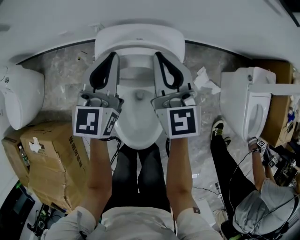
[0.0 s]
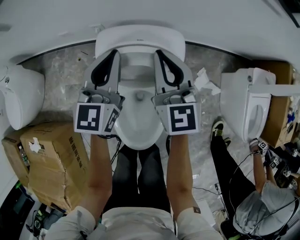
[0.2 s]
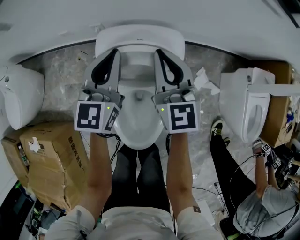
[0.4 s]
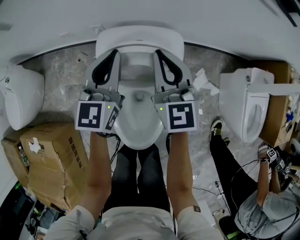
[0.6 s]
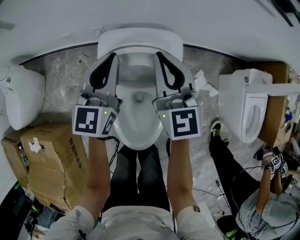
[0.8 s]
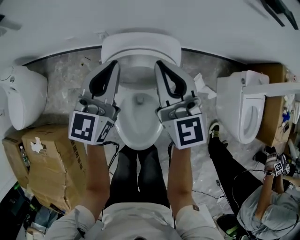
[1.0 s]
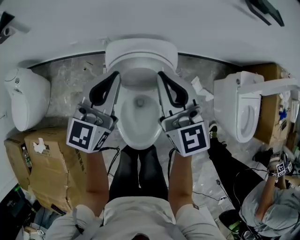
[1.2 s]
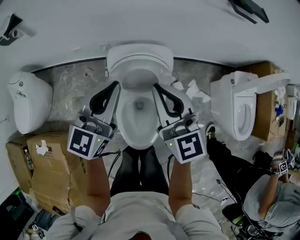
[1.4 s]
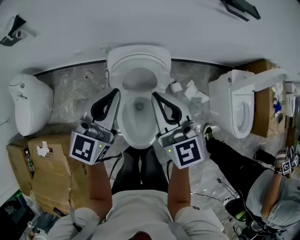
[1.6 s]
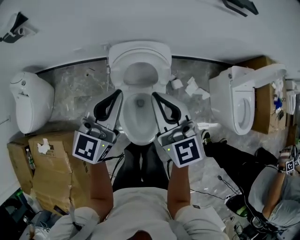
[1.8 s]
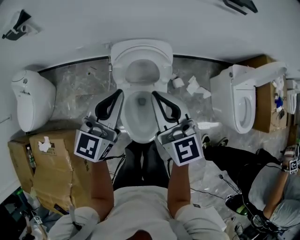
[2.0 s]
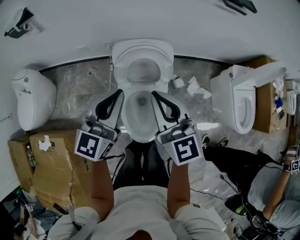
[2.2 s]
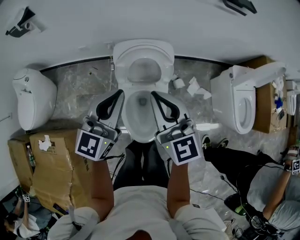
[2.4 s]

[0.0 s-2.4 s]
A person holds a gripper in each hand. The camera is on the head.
0.0 to 1.2 s: Both grippers travel together upward and backward, approximately 15 cm.
1.2 to 2.4 s: The left gripper travels backward and upward by approximately 15 cm. The right gripper heads backward, covering about 15 cm.

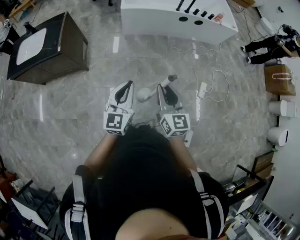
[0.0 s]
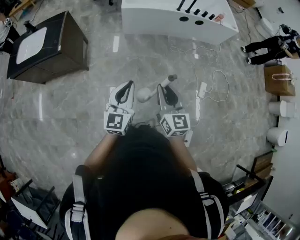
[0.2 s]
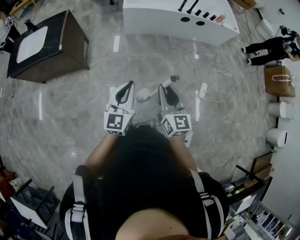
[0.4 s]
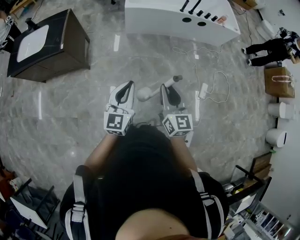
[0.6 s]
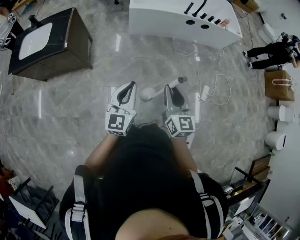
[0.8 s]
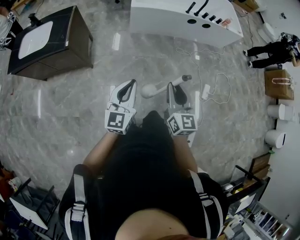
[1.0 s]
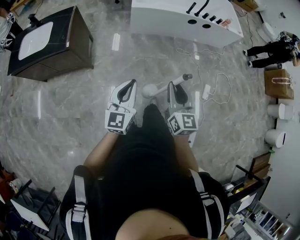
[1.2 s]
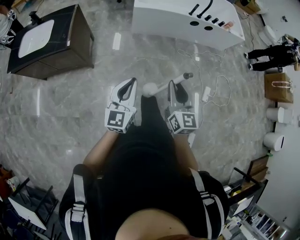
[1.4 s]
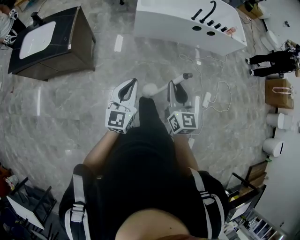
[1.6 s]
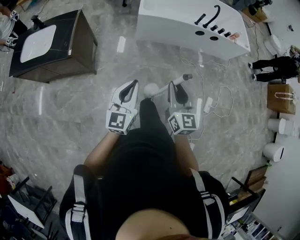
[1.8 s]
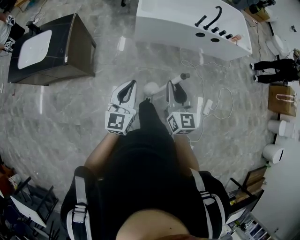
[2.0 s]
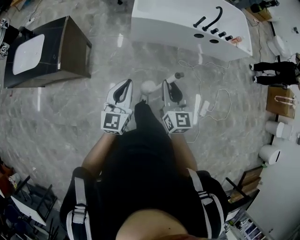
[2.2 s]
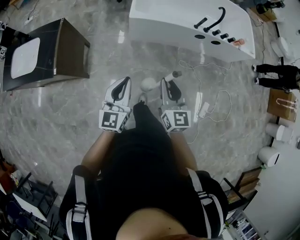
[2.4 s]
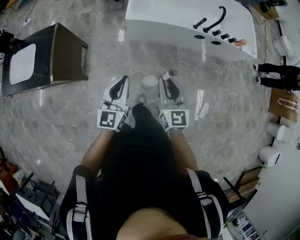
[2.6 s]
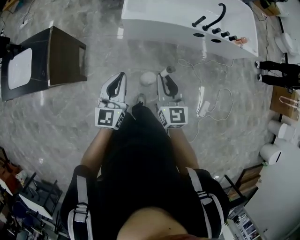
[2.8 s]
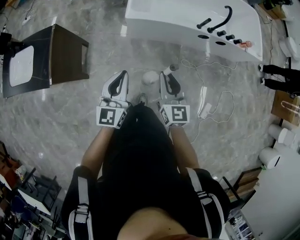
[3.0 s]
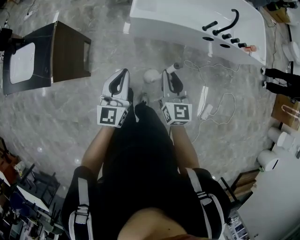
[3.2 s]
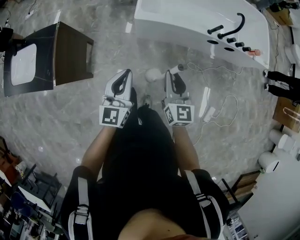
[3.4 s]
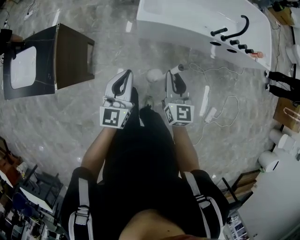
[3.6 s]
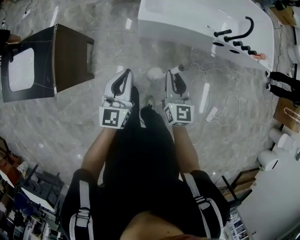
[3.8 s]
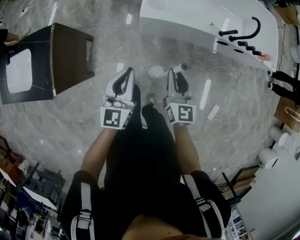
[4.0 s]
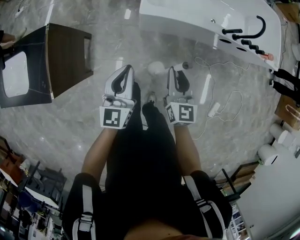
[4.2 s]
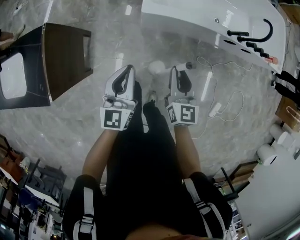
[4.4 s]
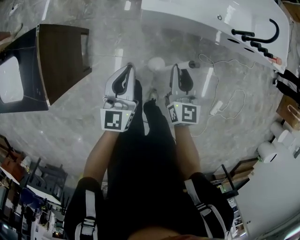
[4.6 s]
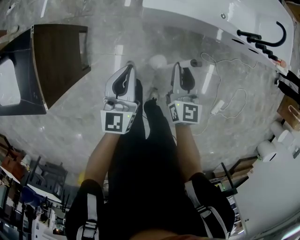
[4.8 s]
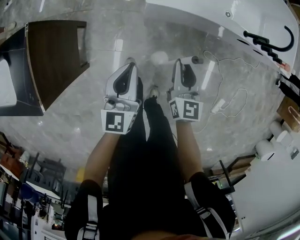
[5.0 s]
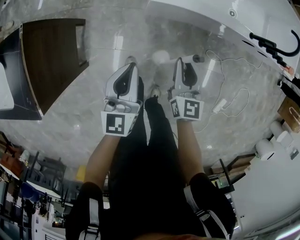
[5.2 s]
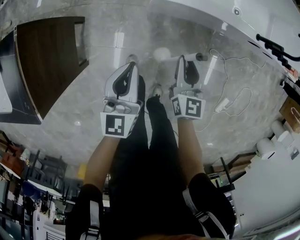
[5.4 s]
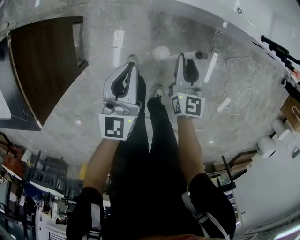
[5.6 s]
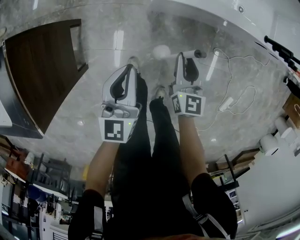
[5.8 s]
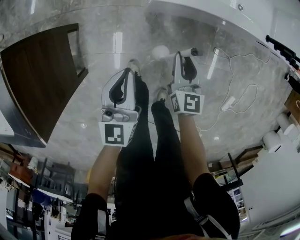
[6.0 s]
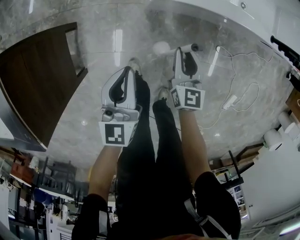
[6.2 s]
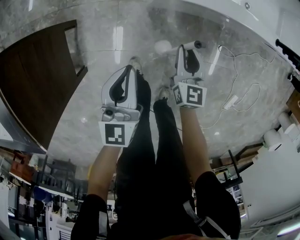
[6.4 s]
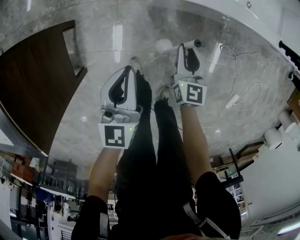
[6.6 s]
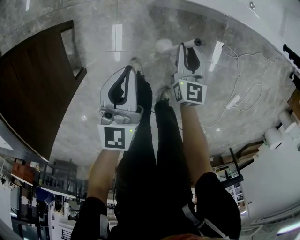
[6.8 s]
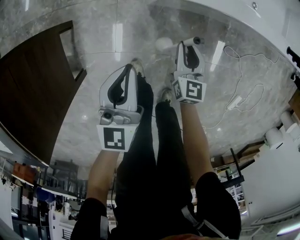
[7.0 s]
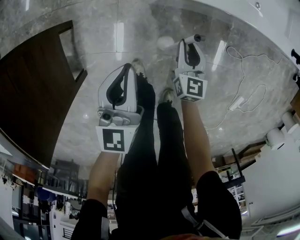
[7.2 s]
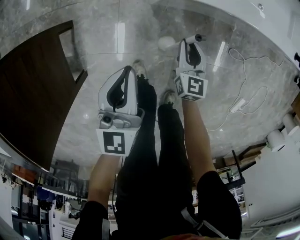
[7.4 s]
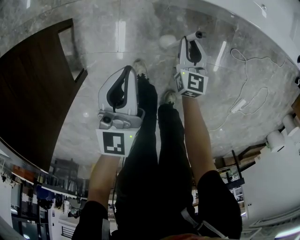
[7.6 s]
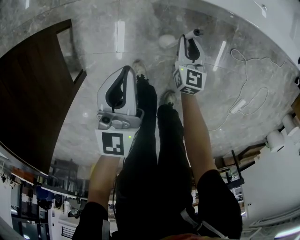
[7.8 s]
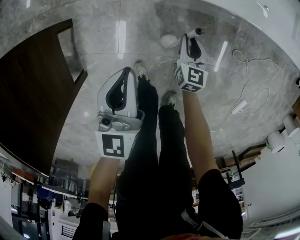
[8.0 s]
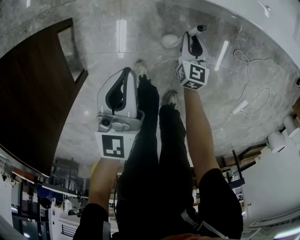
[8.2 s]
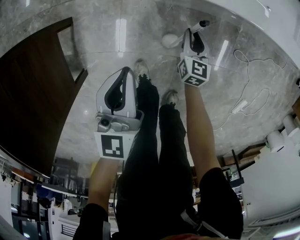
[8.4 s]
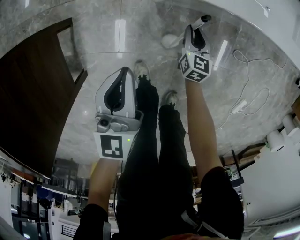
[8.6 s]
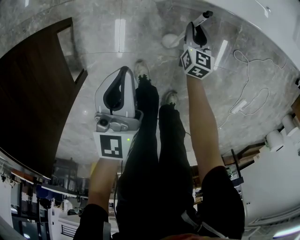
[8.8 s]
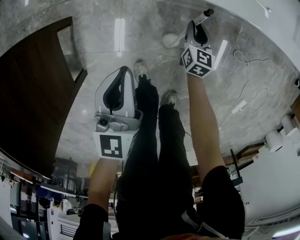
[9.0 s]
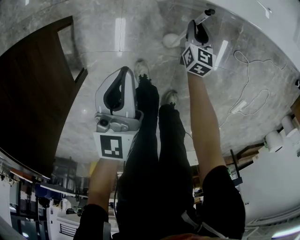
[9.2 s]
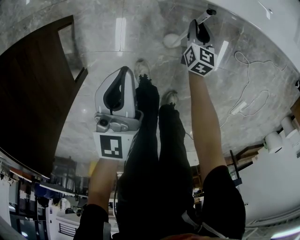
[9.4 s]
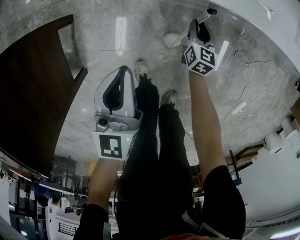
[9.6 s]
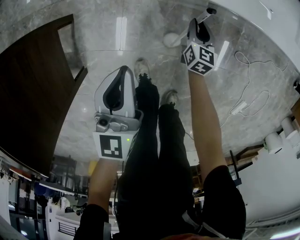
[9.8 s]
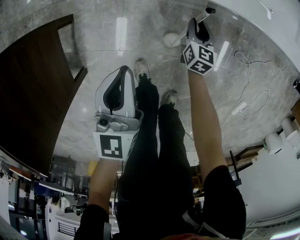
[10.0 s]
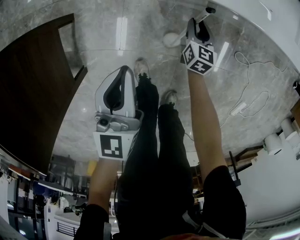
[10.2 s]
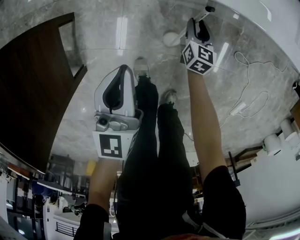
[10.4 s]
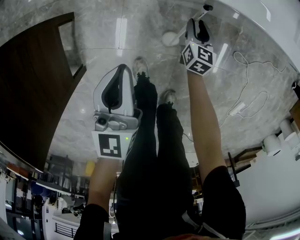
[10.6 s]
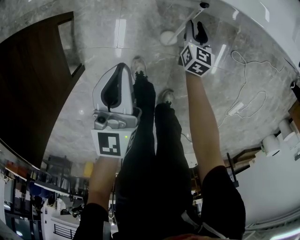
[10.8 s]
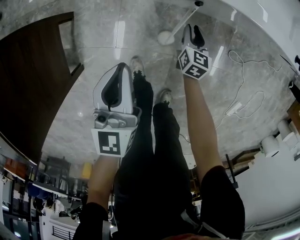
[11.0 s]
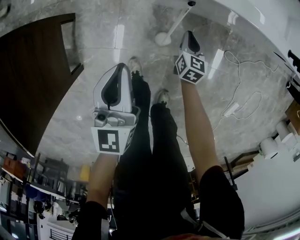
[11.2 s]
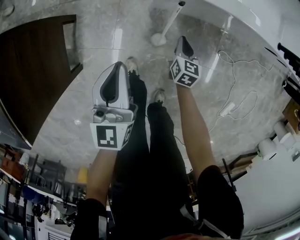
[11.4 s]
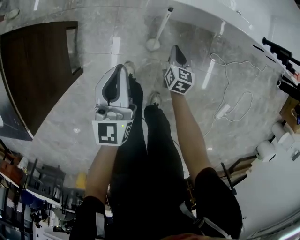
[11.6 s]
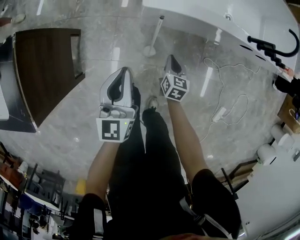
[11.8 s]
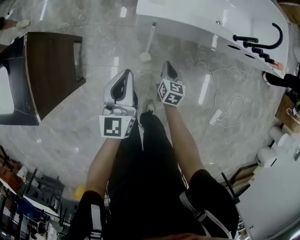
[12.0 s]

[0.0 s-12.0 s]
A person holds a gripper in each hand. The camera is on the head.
0.0 to 1.6 s: The left gripper goes approximately 10 cm to the left and forward; the right gripper travels forward and to the left by about 10 cm.
1.6 to 3.0 s: Both grippers travel together forward, approximately 35 cm.
3.0 to 4.4 s: Both grippers move forward, downward and to the left, approximately 25 cm.
4.4 to 6.0 s: The grippers both shift downward by some 25 cm.
6.0 to 7.6 s: The right gripper is displaced downward by roughly 20 cm; the left gripper is displaced downward by approximately 10 cm.
7.6 to 9.0 s: The right gripper travels downward and forward by about 10 cm.
9.0 to 10.4 s: Neither gripper changes place.
10.4 to 12.0 s: The right gripper travels upward and backward by roughly 35 cm, and closes up. Meanwhile the left gripper heads upward and to the right, covering approximately 30 cm.

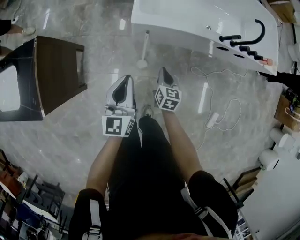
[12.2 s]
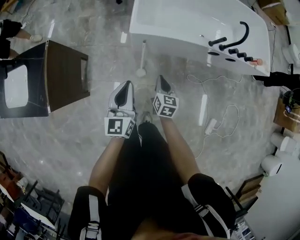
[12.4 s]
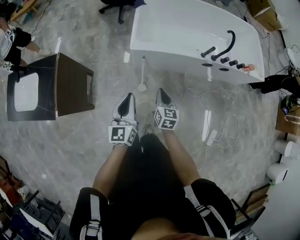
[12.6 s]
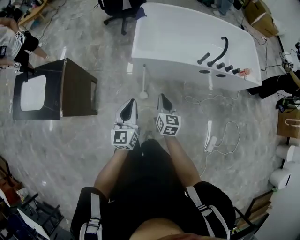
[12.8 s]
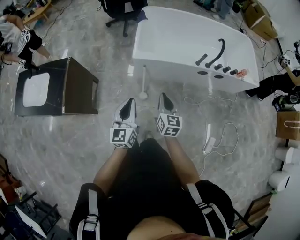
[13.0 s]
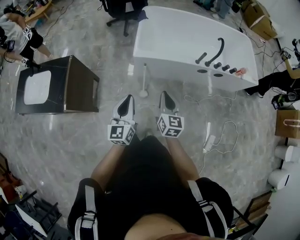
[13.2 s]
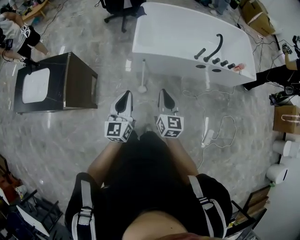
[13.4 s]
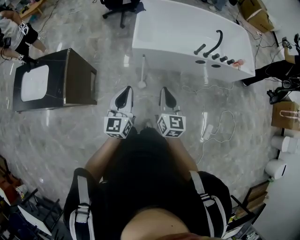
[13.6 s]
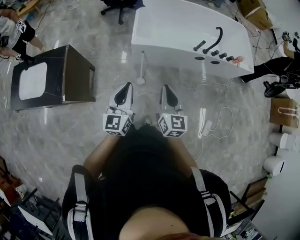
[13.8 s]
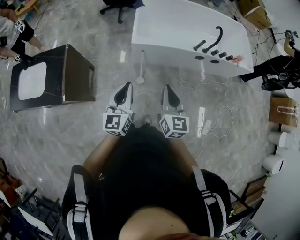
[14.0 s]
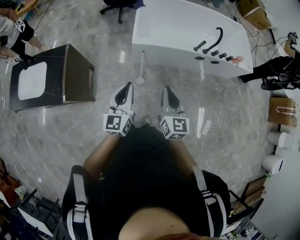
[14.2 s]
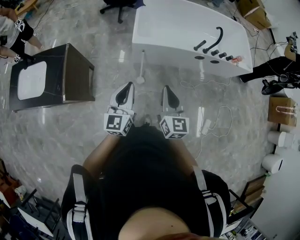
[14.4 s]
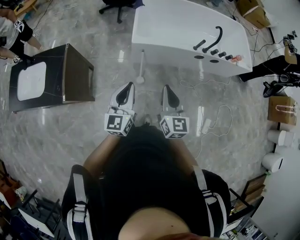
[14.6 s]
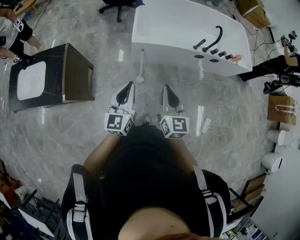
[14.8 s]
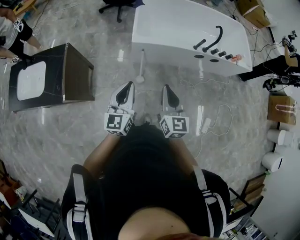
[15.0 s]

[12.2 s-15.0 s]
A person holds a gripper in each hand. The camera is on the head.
12.2 to 13.6 s: The left gripper heads upward and backward, covering some 25 cm, while the right gripper shifts approximately 40 cm upward and backward, and changes its angle by about 20 degrees.
13.6 to 15.0 s: The grippers make only small movements.

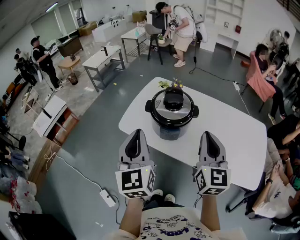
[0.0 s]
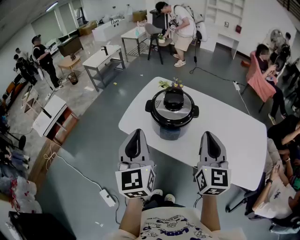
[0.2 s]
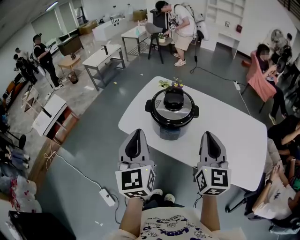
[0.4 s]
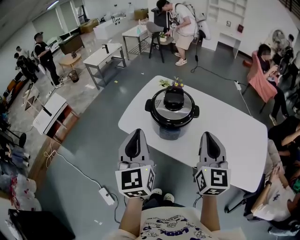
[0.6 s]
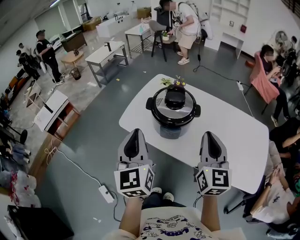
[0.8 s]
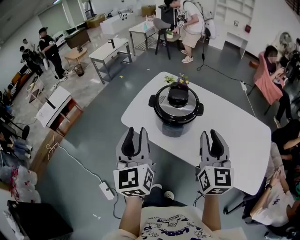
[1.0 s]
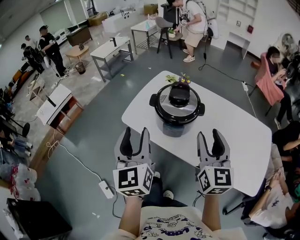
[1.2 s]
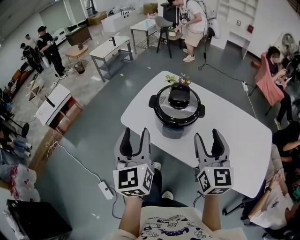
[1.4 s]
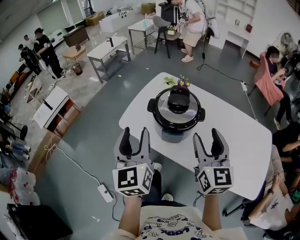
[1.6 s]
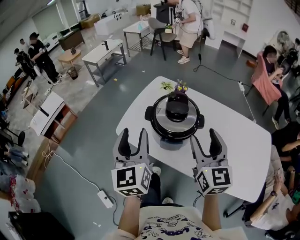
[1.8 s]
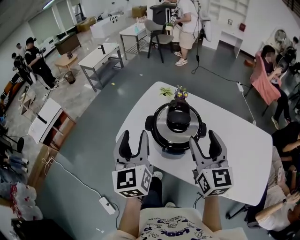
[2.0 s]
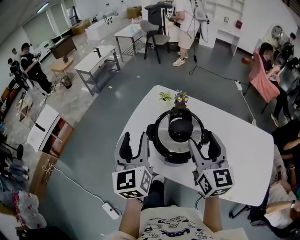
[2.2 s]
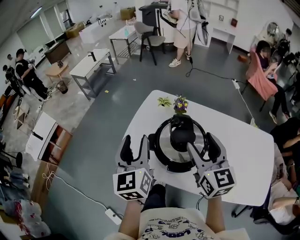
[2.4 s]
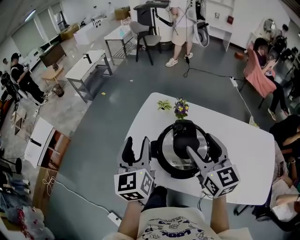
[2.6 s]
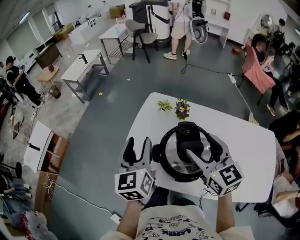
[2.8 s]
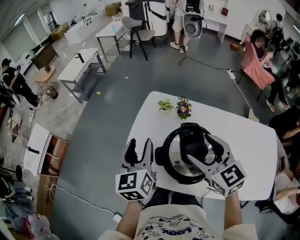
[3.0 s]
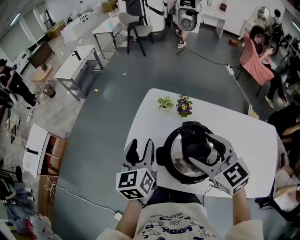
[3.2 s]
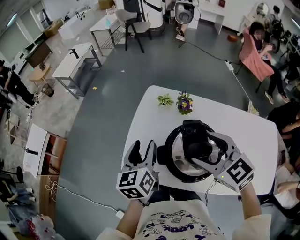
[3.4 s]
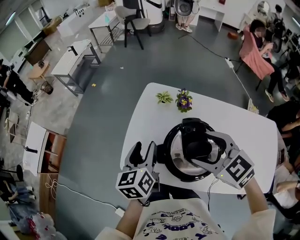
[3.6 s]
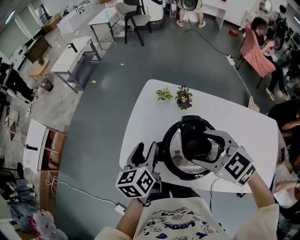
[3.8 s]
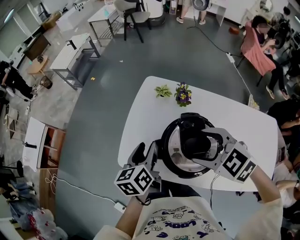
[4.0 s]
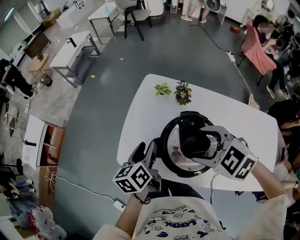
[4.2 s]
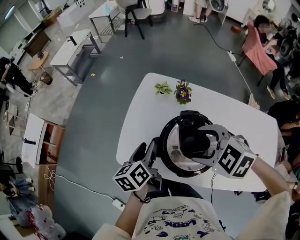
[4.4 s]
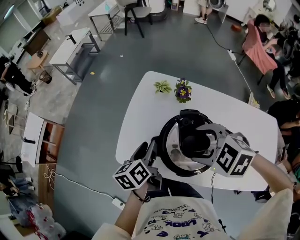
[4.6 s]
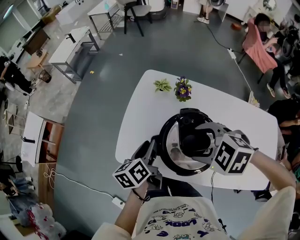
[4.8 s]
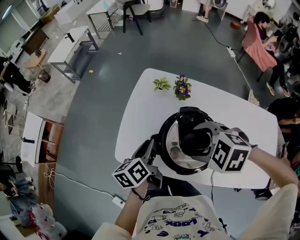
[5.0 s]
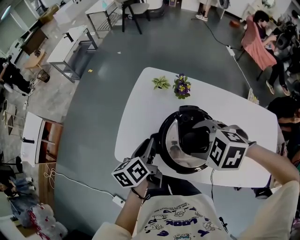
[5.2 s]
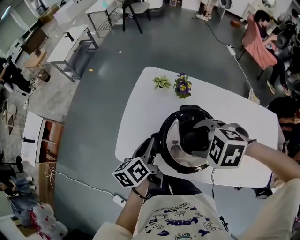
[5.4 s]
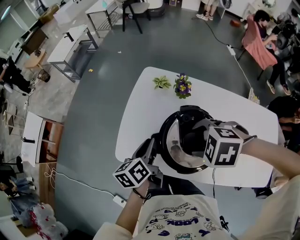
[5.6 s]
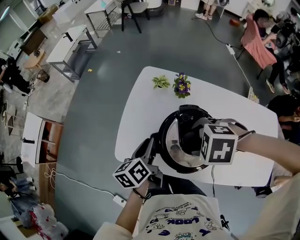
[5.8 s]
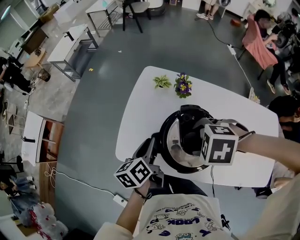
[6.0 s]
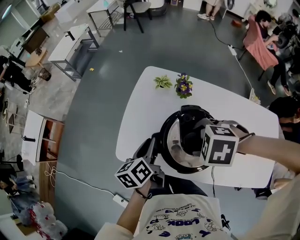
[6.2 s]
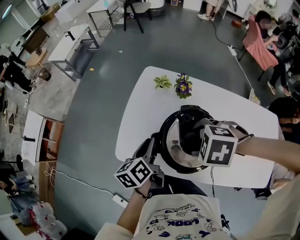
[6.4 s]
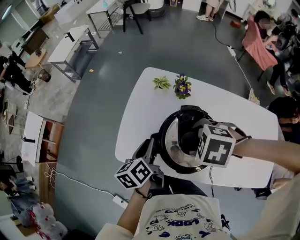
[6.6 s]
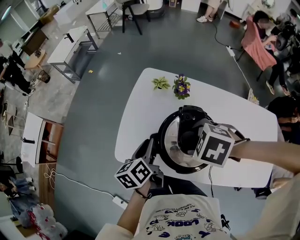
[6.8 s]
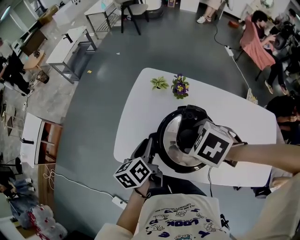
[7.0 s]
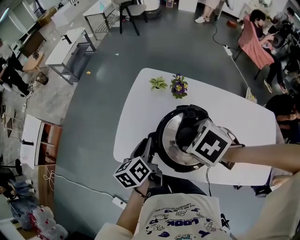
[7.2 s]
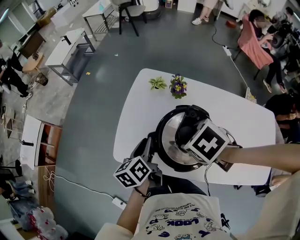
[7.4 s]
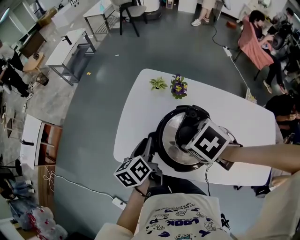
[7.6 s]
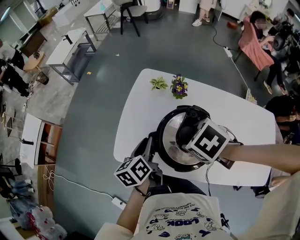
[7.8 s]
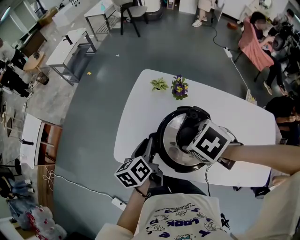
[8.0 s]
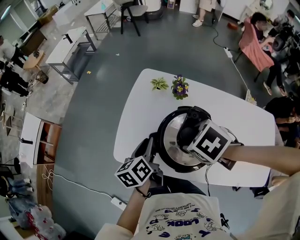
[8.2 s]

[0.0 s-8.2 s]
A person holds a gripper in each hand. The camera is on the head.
0.0 to 1.6 s: The two grippers go approximately 5 cm forward. The left gripper opens its fingers. Meanwhile the right gripper opens.
1.6 to 3.2 s: The grippers both shift forward by some 30 cm. The left gripper turns by some 30 degrees, while the right gripper changes its angle by some 30 degrees.
3.2 to 5.0 s: The grippers both shift downward by roughly 10 cm. The left gripper rotates roughly 40 degrees, and closes up. Meanwhile the right gripper tilts its fingers roughly 40 degrees downward.
5.0 to 6.6 s: The grippers move only a little.
6.6 to 8.2 s: The right gripper rotates about 30 degrees.
